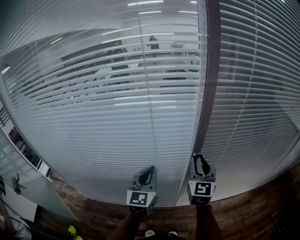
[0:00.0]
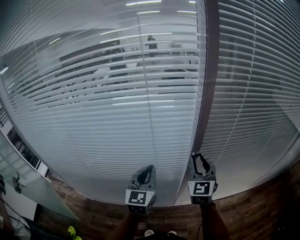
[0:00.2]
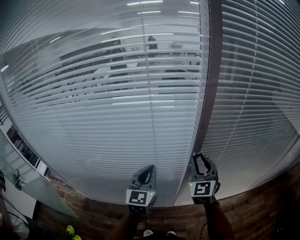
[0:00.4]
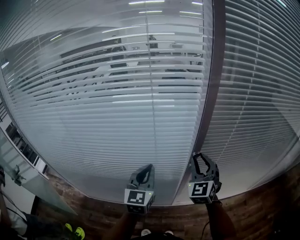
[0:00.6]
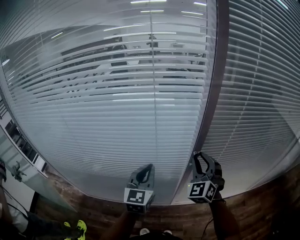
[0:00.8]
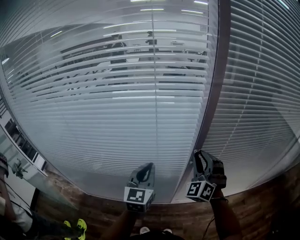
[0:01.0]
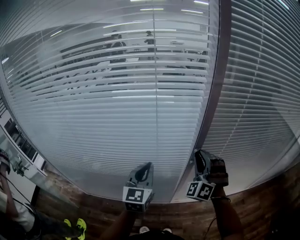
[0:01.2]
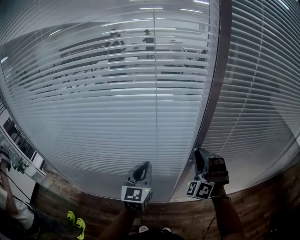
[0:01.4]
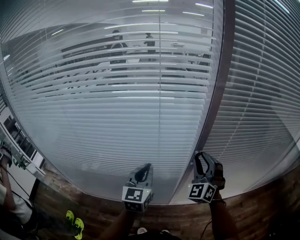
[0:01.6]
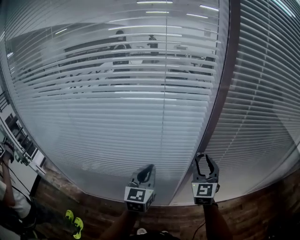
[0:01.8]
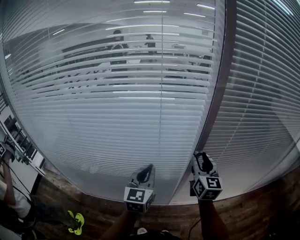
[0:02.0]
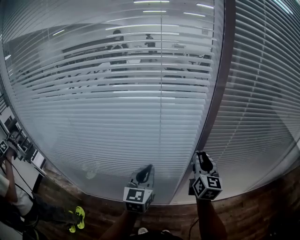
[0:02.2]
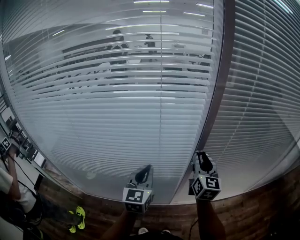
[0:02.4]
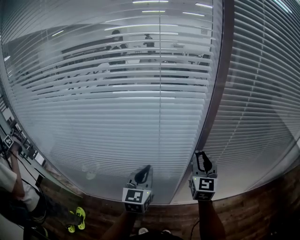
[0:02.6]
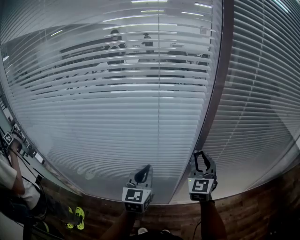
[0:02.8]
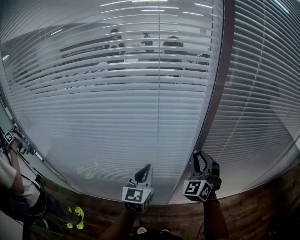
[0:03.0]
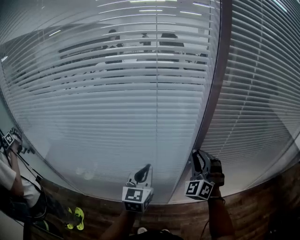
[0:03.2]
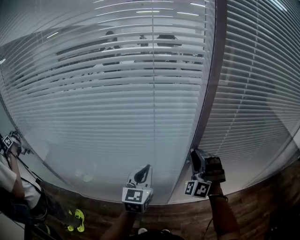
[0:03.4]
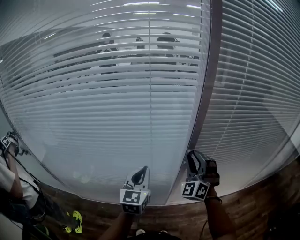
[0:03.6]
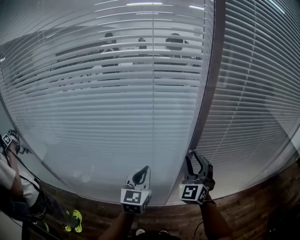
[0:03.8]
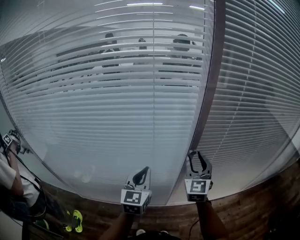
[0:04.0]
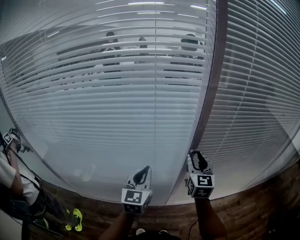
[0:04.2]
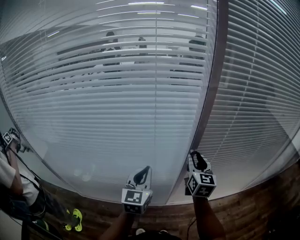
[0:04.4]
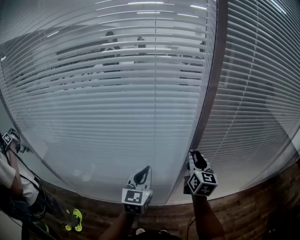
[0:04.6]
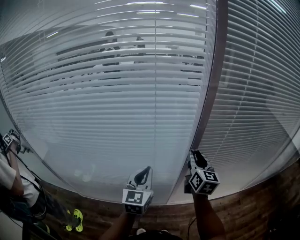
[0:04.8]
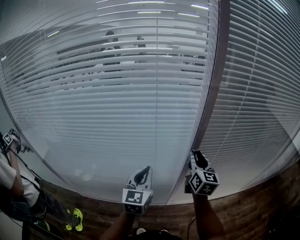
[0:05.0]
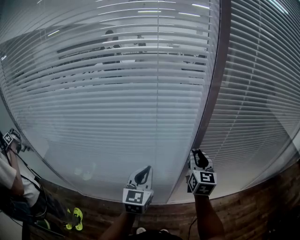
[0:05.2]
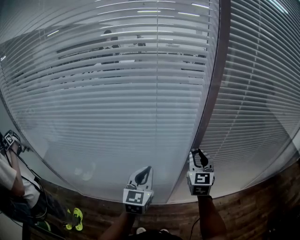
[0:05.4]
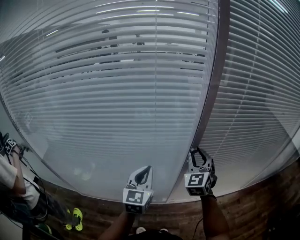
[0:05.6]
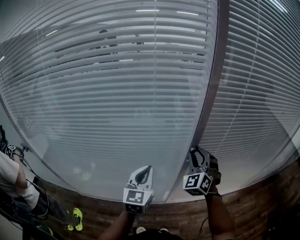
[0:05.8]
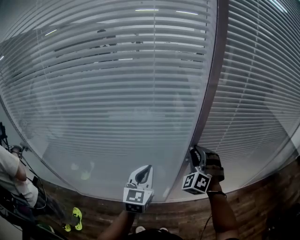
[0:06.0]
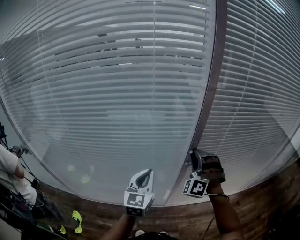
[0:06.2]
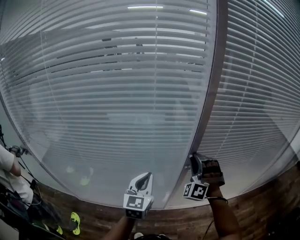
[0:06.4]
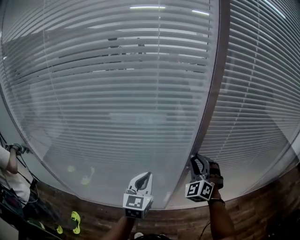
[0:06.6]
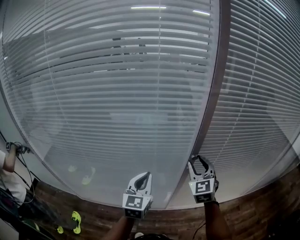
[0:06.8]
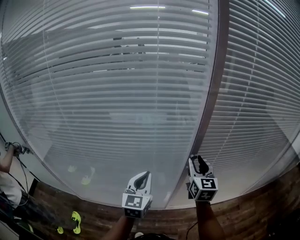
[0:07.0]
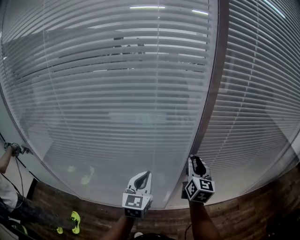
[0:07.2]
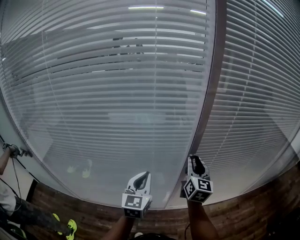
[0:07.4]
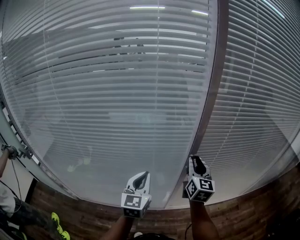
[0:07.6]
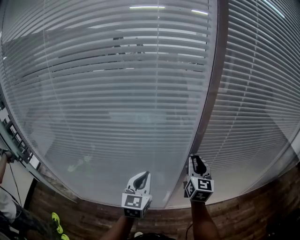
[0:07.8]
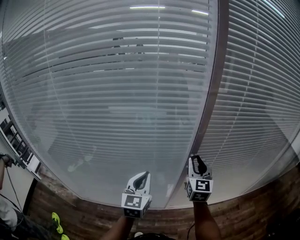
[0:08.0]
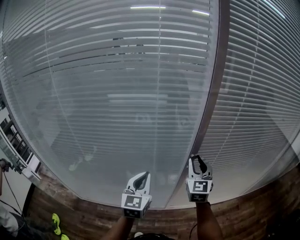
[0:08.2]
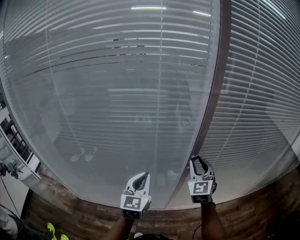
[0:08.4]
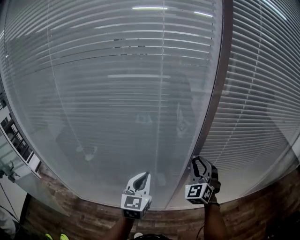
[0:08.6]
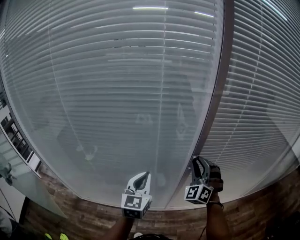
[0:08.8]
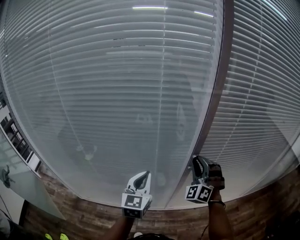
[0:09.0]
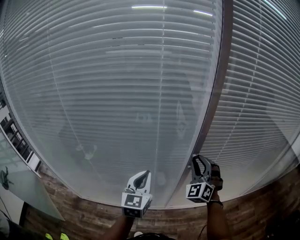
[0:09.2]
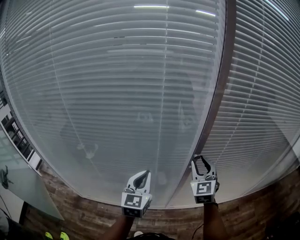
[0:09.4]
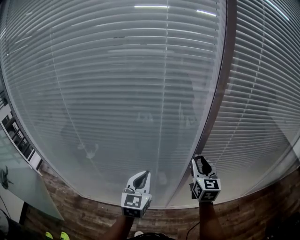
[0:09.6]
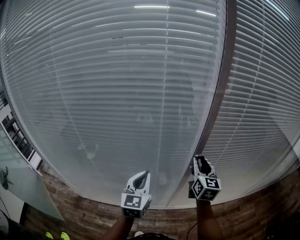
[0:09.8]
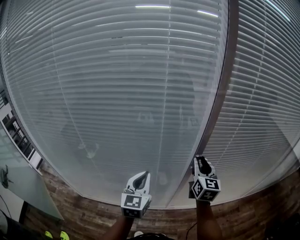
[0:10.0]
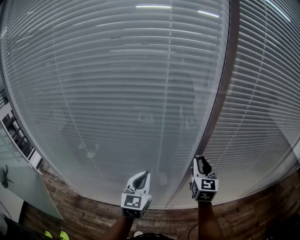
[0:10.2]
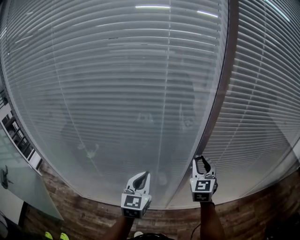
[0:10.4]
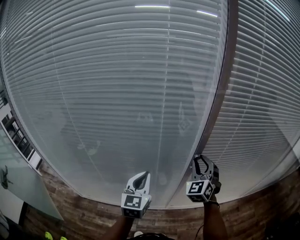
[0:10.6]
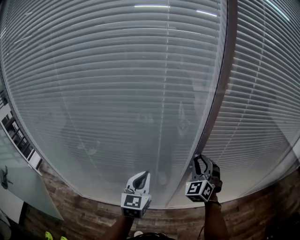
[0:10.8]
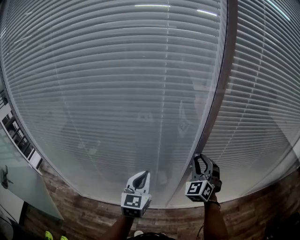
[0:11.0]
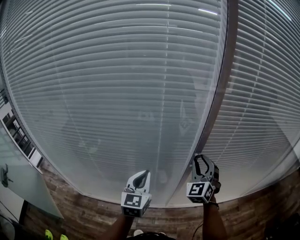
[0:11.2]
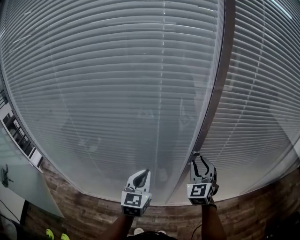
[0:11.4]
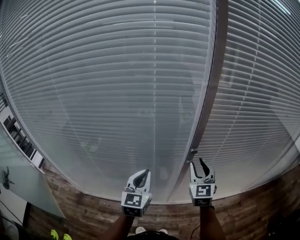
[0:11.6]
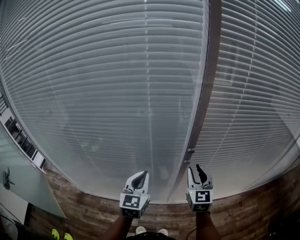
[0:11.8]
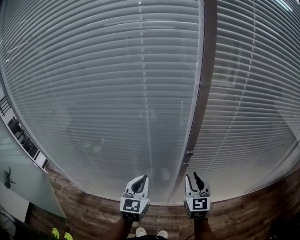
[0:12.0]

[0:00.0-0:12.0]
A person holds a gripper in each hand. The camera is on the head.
0:00.0 to 0:01.6: The right gripper rotates around the line of its fingers by approximately 50 degrees, counterclockwise from behind.
0:03.0 to 0:04.4: The right gripper rotates around the line of its fingers by roughly 60 degrees, clockwise from behind.
0:04.4 to 0:06.0: The right gripper rolls counterclockwise, seen from behind, by approximately 80 degrees.
0:06.0 to 0:07.6: The right gripper twists about 80 degrees clockwise, seen from behind.
0:07.6 to 0:09.0: The right gripper rolls counterclockwise, seen from behind, by some 80 degrees.
0:09.0 to 0:10.4: The right gripper twists roughly 50 degrees clockwise, seen from behind.
0:10.4 to 0:12.0: The right gripper heads backward and downward, covering some 10 cm.

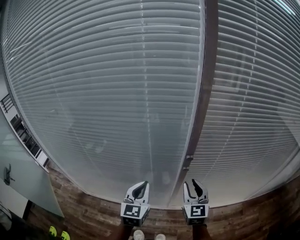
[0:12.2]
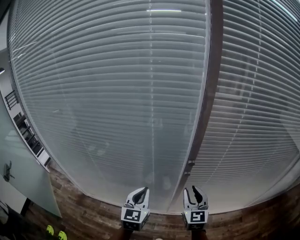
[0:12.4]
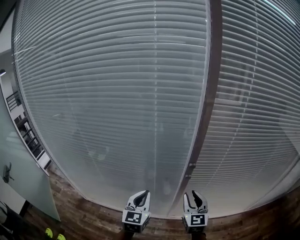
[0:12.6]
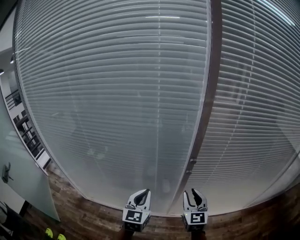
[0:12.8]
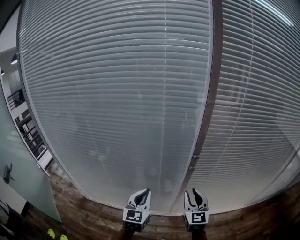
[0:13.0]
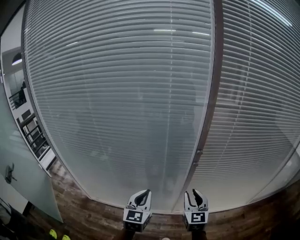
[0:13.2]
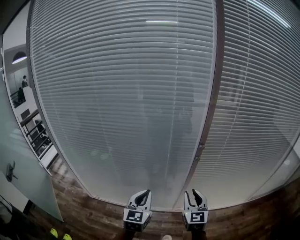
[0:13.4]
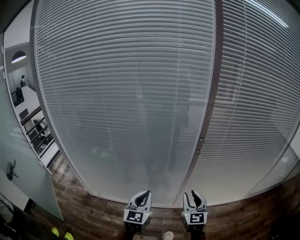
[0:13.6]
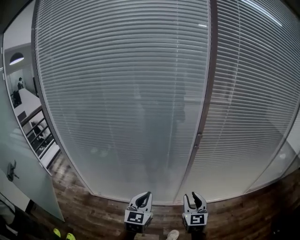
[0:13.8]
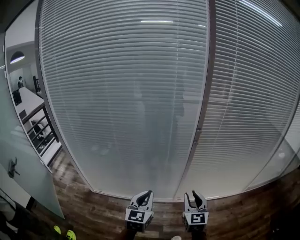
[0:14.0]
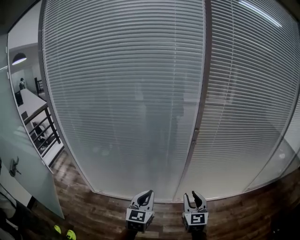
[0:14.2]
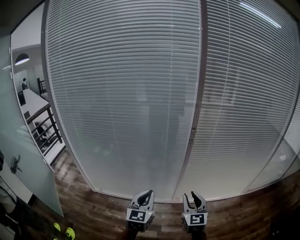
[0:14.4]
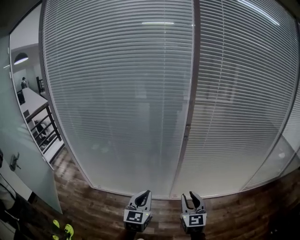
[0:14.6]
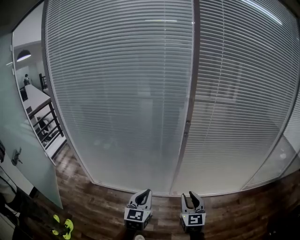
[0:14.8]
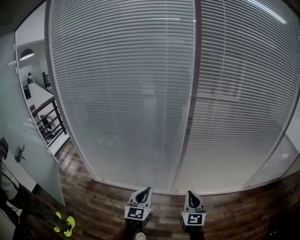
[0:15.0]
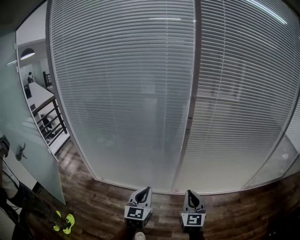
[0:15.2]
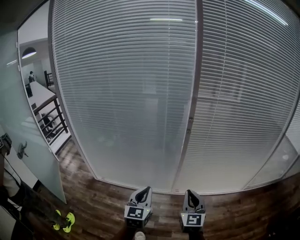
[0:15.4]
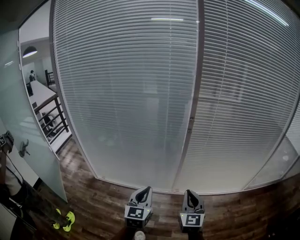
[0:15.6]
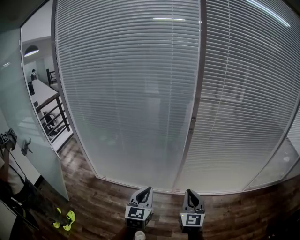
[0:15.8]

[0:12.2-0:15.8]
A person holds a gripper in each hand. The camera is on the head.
0:12.2 to 0:14.0: Both grippers travel together backward, some 25 cm.
0:14.0 to 0:15.8: The grippers both shift backward and to the right by some 10 cm. The right gripper closes up.

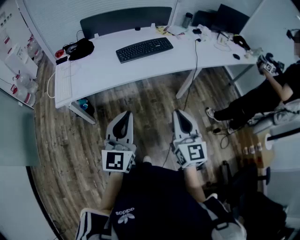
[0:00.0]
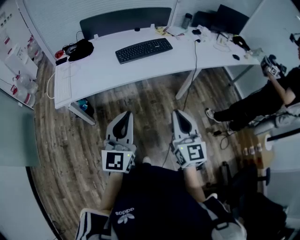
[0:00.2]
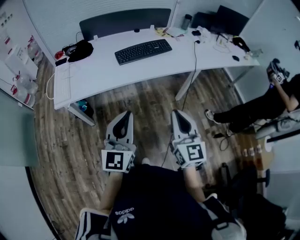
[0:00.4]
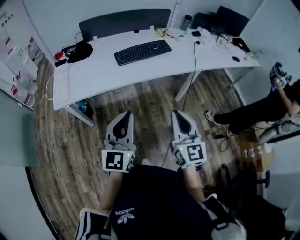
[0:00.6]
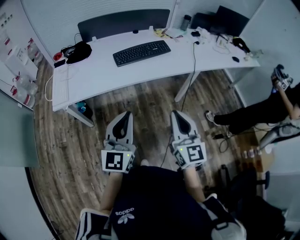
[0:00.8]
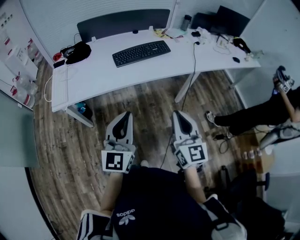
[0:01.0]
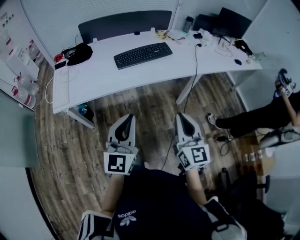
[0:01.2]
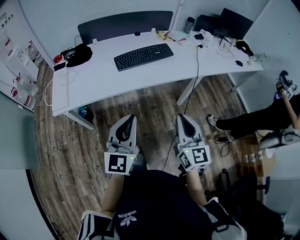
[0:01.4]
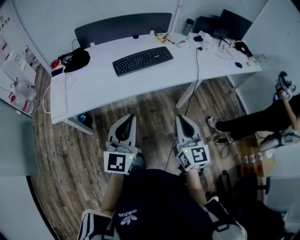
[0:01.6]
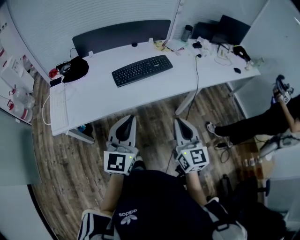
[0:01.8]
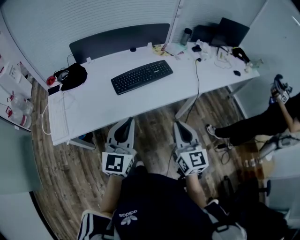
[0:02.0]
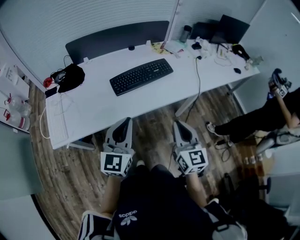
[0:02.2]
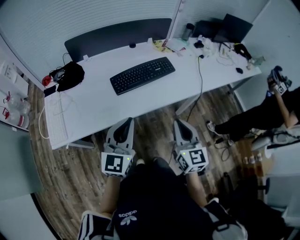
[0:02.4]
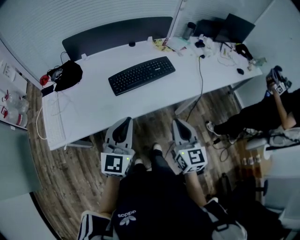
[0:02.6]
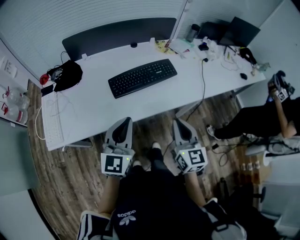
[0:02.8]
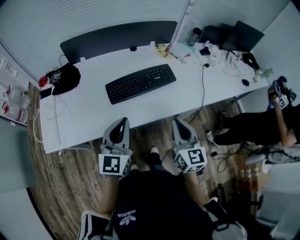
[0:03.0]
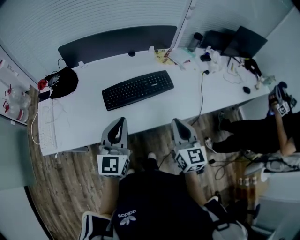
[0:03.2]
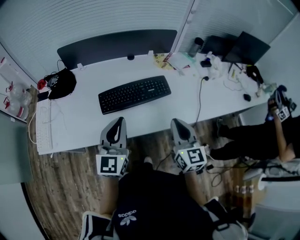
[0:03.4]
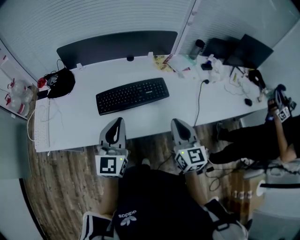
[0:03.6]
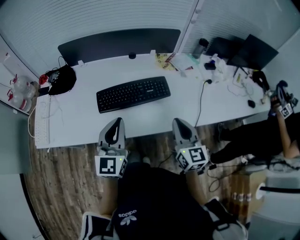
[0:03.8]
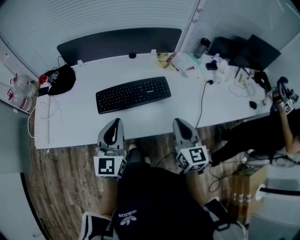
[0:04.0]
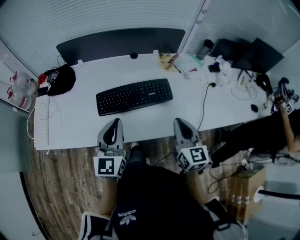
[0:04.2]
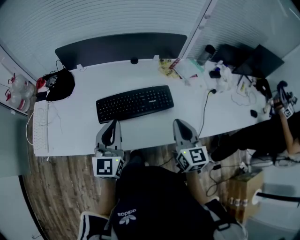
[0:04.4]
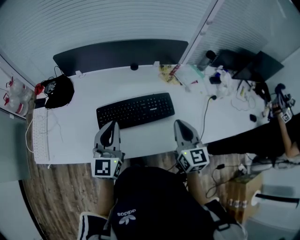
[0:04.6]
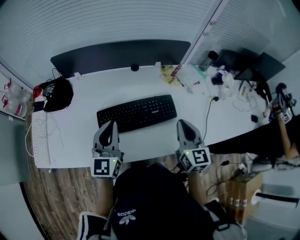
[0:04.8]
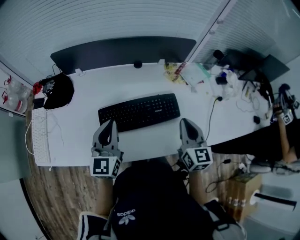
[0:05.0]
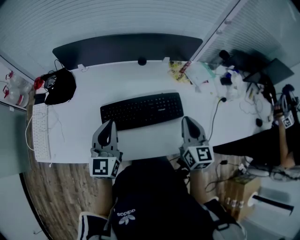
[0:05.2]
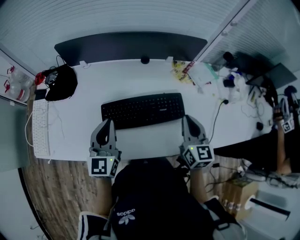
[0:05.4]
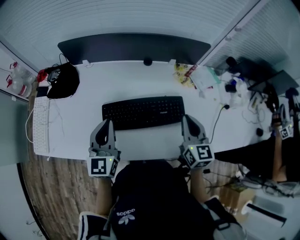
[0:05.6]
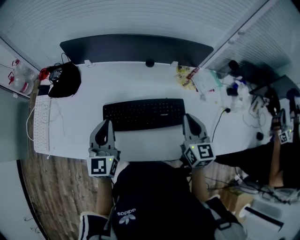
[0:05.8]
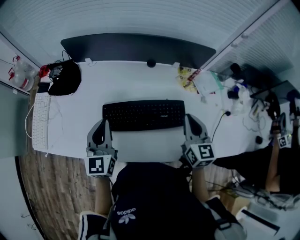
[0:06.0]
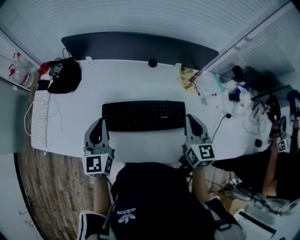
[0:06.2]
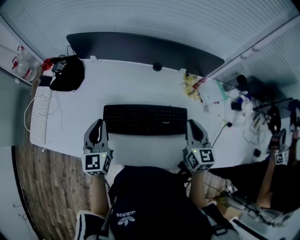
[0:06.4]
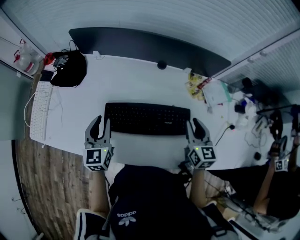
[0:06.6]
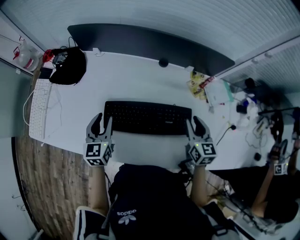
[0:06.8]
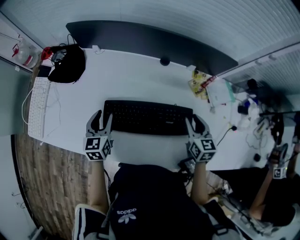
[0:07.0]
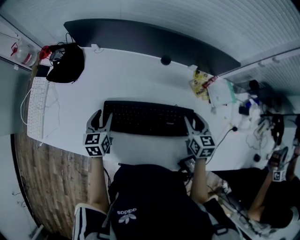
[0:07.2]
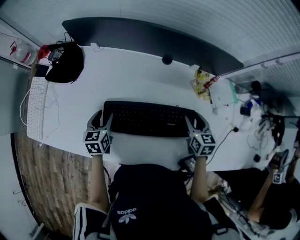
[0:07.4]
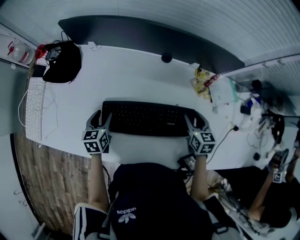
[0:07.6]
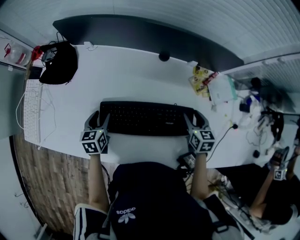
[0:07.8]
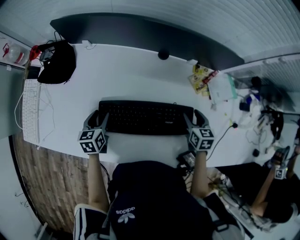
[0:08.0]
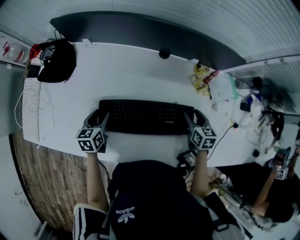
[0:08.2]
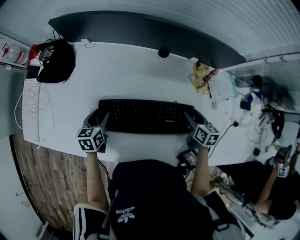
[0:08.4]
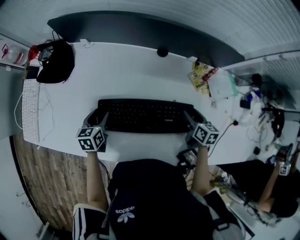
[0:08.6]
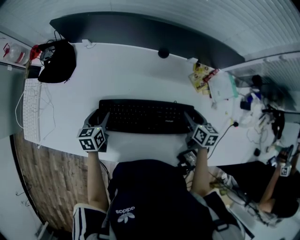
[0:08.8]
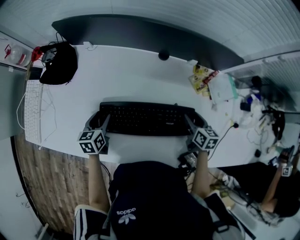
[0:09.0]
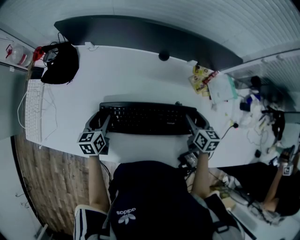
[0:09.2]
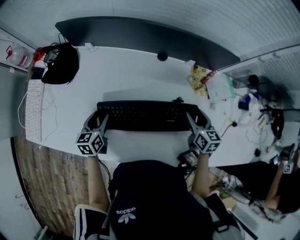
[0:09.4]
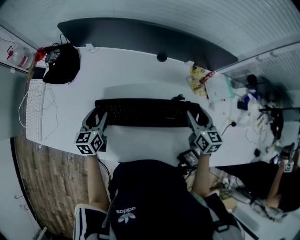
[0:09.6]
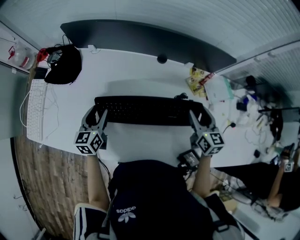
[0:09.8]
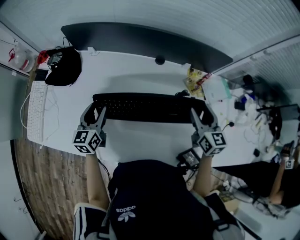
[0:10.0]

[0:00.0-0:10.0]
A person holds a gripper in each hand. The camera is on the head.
0:00.0 to 0:01.4: The two grippers go about 5 cm forward.
0:01.4 to 0:02.8: Both grippers move forward, some 25 cm.
0:02.8 to 0:04.2: The grippers both shift forward and to the right by about 20 cm.
0:04.2 to 0:05.8: The left gripper shifts approximately 15 cm forward and to the left; the right gripper shifts roughly 20 cm forward.
0:05.8 to 0:07.2: The right gripper heads downward and forward, covering approximately 15 cm, rotates some 20 degrees, and opens. Meanwhile the left gripper goes approximately 20 cm downward, swivels roughly 30 degrees, and opens.
0:07.2 to 0:08.6: The two grippers go about 5 cm downward. The right gripper swivels roughly 20 degrees.
0:08.6 to 0:10.0: Both grippers travel together upward, some 15 cm. The right gripper turns by about 30 degrees. The left gripper turns by about 30 degrees.
